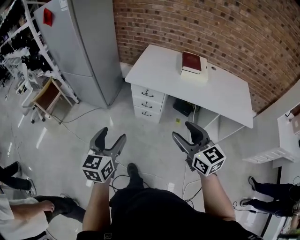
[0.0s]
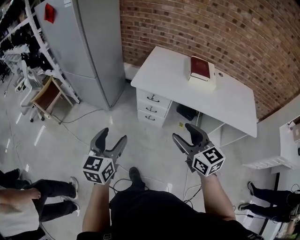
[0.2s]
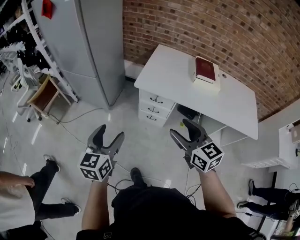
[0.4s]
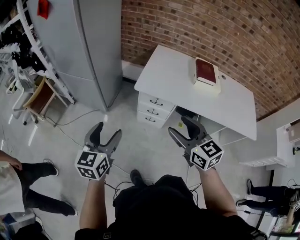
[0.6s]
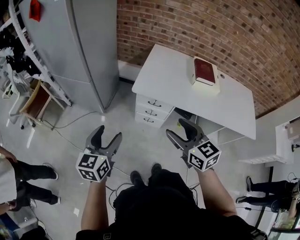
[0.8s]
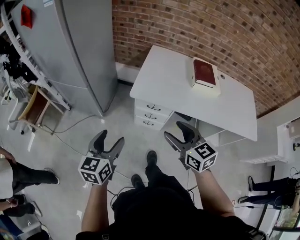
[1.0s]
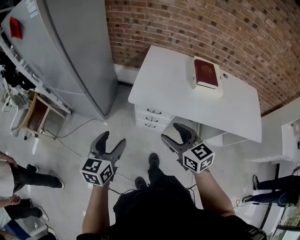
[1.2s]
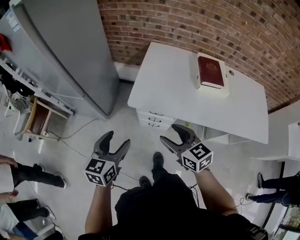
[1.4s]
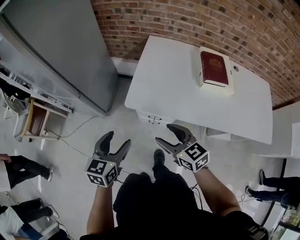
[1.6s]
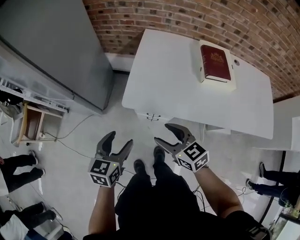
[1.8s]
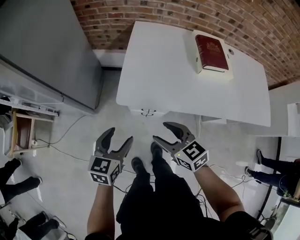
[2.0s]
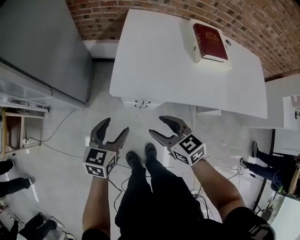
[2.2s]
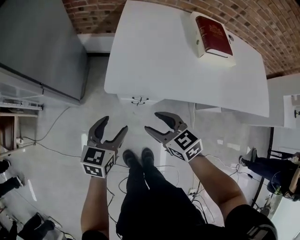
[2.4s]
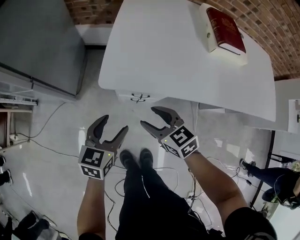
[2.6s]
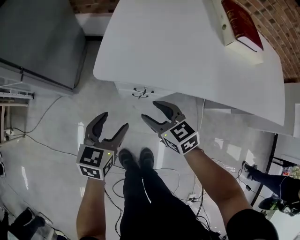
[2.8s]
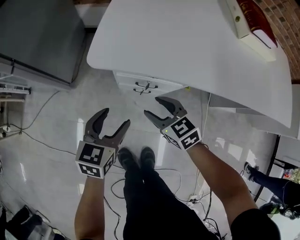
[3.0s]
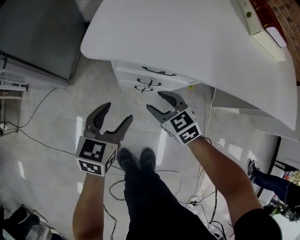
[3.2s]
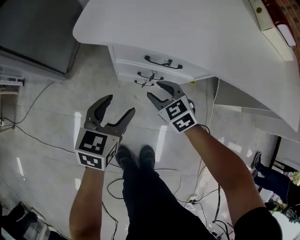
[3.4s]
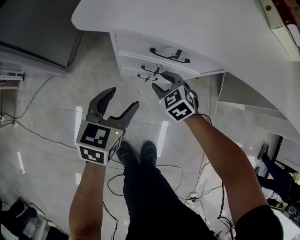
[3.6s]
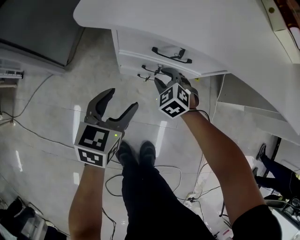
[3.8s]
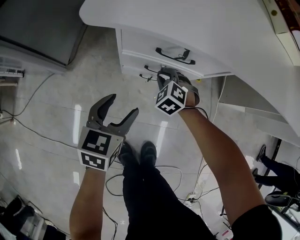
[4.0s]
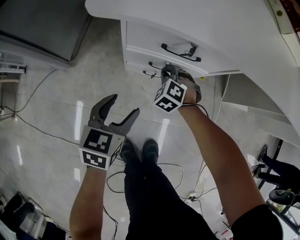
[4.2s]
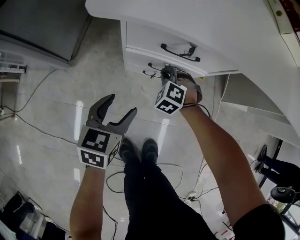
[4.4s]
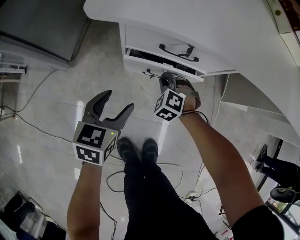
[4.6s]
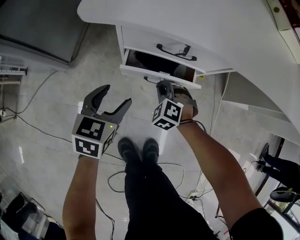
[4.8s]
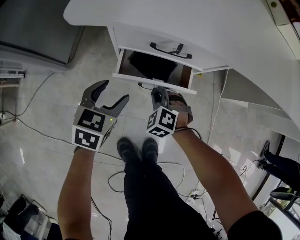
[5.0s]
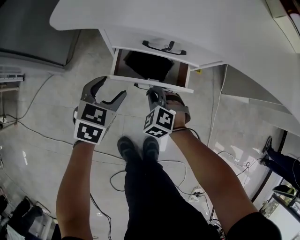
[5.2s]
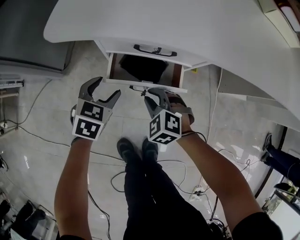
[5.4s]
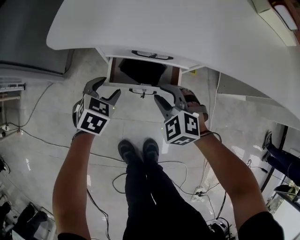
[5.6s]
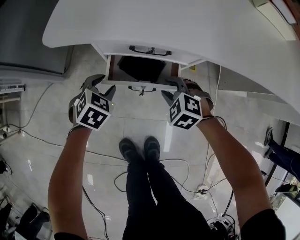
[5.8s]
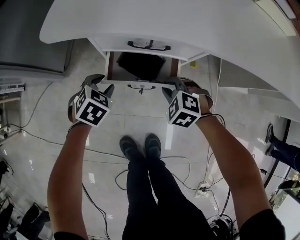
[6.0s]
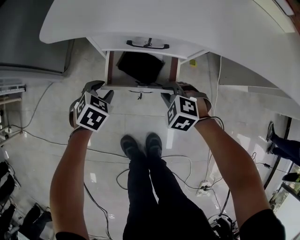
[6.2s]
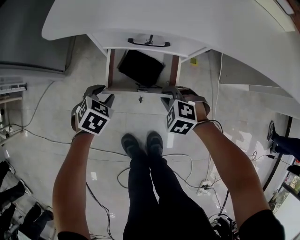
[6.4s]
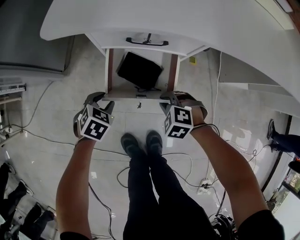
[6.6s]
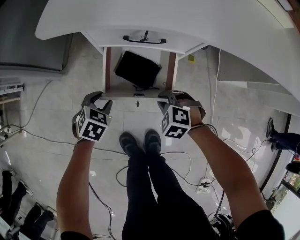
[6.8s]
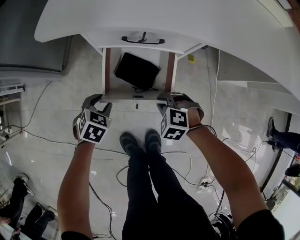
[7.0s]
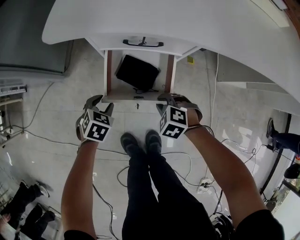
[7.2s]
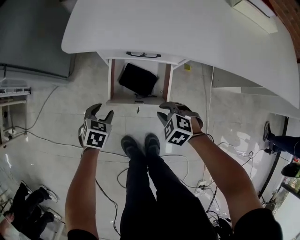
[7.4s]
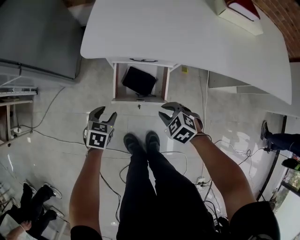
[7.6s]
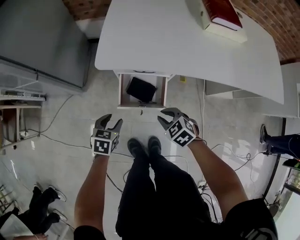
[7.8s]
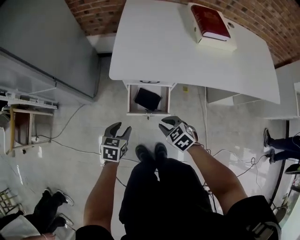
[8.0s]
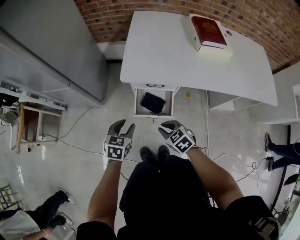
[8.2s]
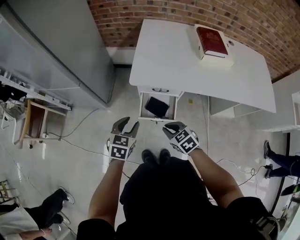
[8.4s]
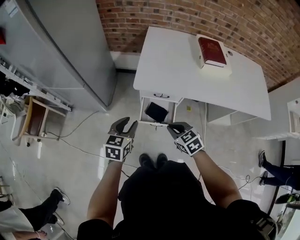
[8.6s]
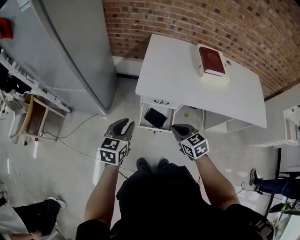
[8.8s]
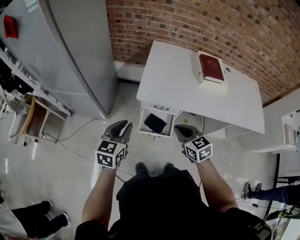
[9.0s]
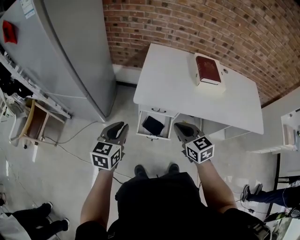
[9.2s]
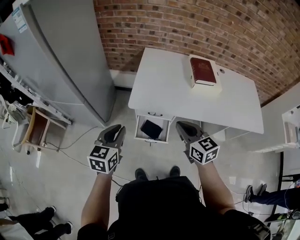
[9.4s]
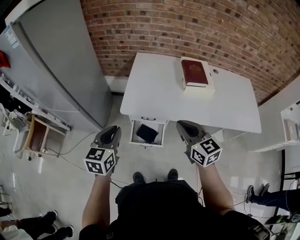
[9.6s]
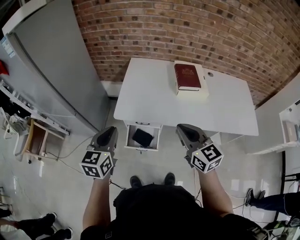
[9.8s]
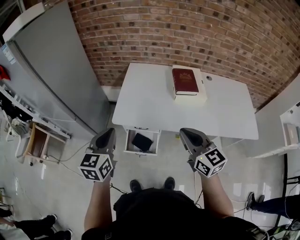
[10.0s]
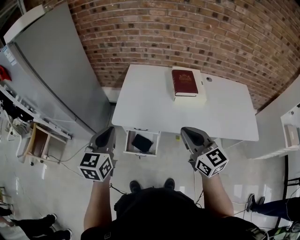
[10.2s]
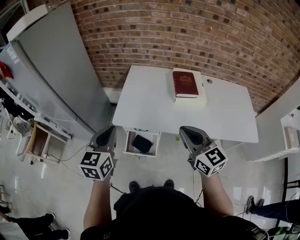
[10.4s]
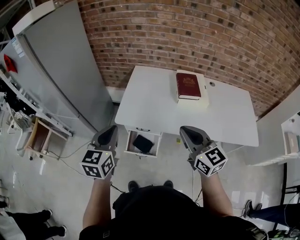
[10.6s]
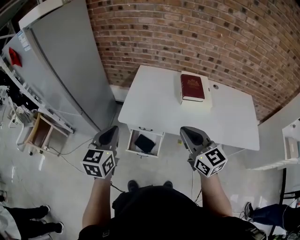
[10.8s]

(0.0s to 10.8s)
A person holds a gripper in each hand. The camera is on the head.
0.0s - 1.6s: Both grippers move forward, some 35 cm.
1.6s - 3.0s: Both grippers travel together downward, about 35 cm.
3.0s - 4.6s: The left gripper shifts approximately 10 cm downward; the right gripper travels downward by roughly 20 cm, rotates about 50 degrees, and closes up.
4.6s - 6.2s: The left gripper travels downward by some 10 cm, turns by approximately 40 degrees, and closes. The right gripper is displaced backward, to the right and upward by approximately 10 cm, and opens, then closes once more.
6.2s - 7.8s: The right gripper moves upward, roughly 20 cm, and rotates approximately 30 degrees. The left gripper goes some 20 cm upward and backward, and rotates roughly 30 degrees.
7.8s - 9.2s: Both grippers travel together upward, about 35 cm. The left gripper rotates about 30 degrees, and closes its fingers. The right gripper points its fingers roughly 30 degrees further upward.
9.2s - 10.8s: The left gripper moves upward and to the right, about 20 cm. The right gripper goes approximately 20 cm to the right and upward, and turns by about 20 degrees.

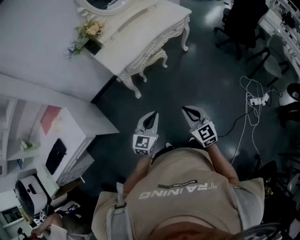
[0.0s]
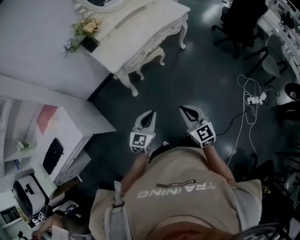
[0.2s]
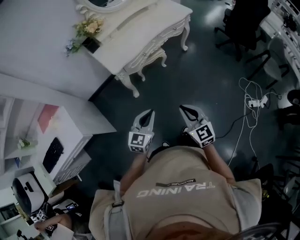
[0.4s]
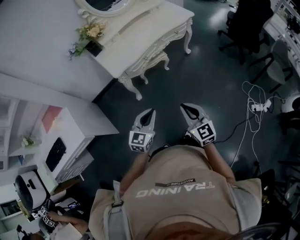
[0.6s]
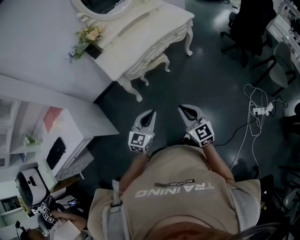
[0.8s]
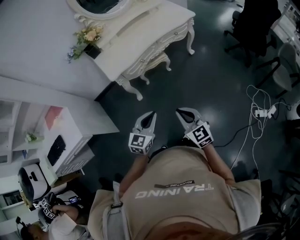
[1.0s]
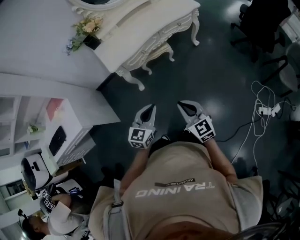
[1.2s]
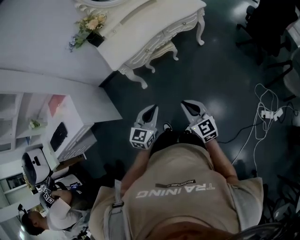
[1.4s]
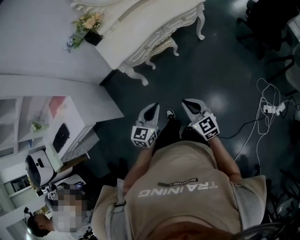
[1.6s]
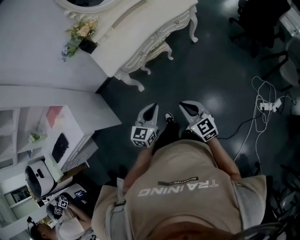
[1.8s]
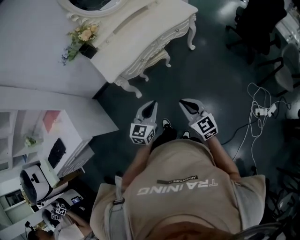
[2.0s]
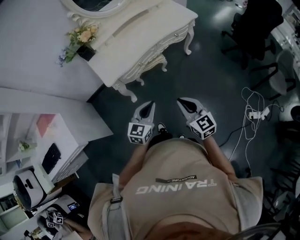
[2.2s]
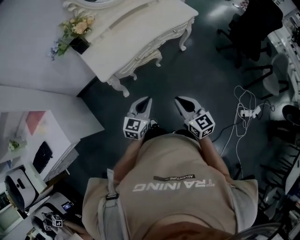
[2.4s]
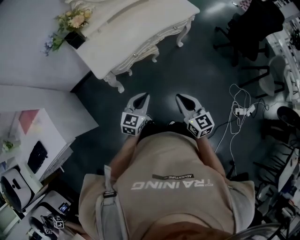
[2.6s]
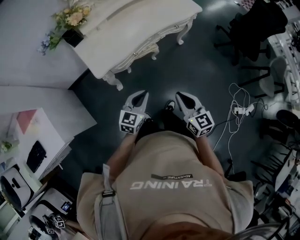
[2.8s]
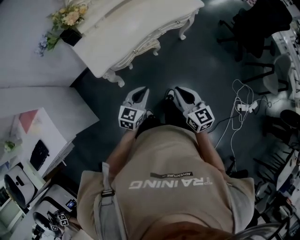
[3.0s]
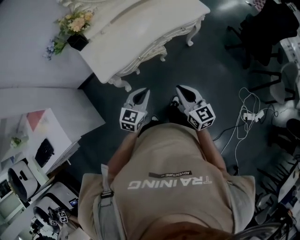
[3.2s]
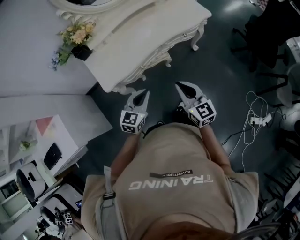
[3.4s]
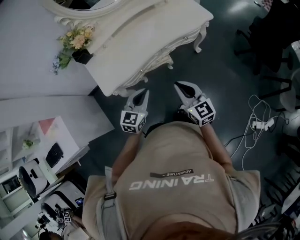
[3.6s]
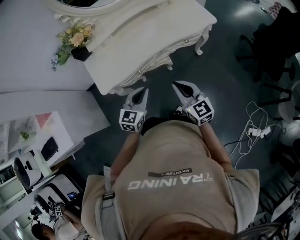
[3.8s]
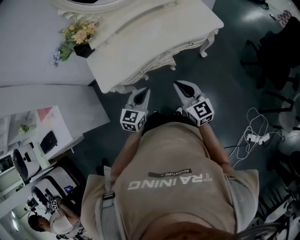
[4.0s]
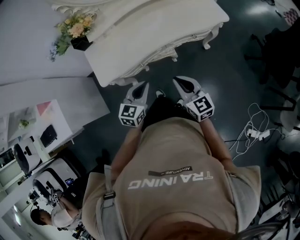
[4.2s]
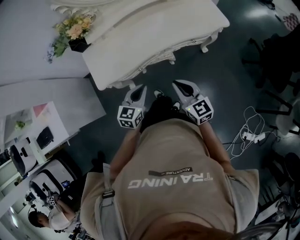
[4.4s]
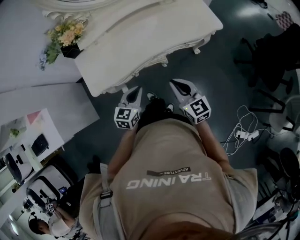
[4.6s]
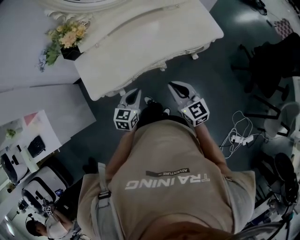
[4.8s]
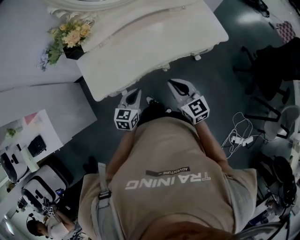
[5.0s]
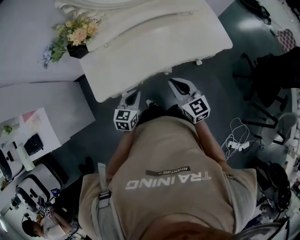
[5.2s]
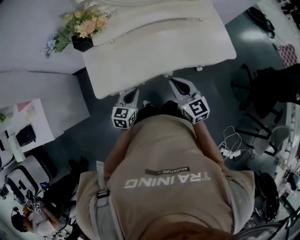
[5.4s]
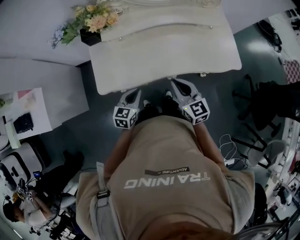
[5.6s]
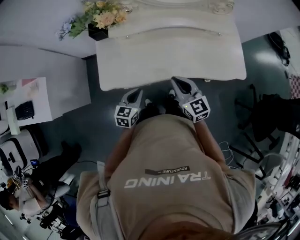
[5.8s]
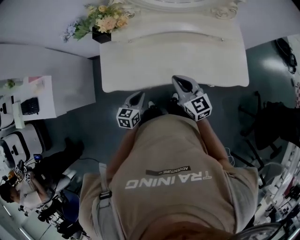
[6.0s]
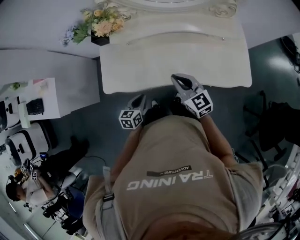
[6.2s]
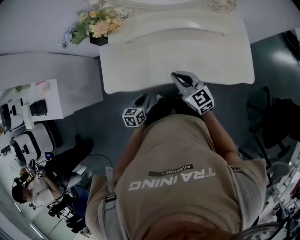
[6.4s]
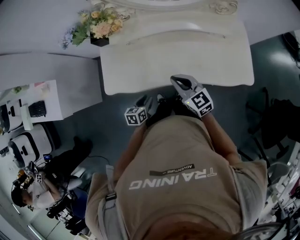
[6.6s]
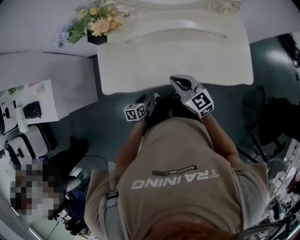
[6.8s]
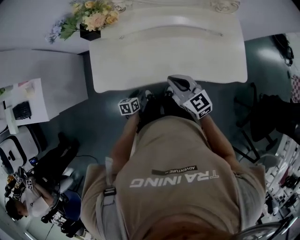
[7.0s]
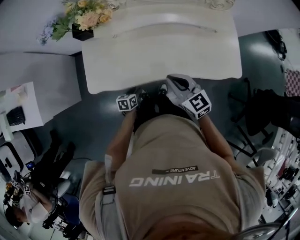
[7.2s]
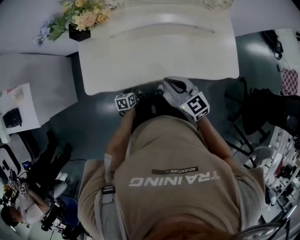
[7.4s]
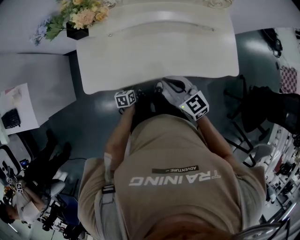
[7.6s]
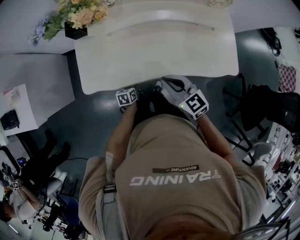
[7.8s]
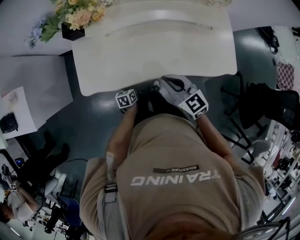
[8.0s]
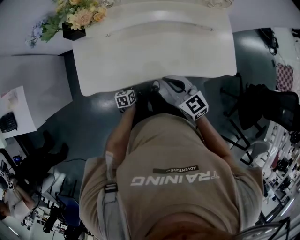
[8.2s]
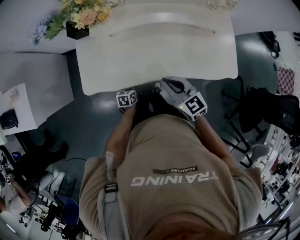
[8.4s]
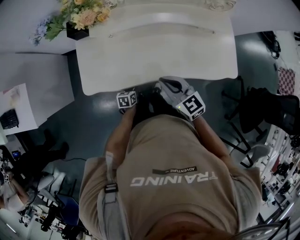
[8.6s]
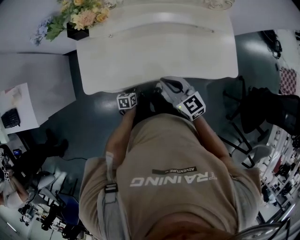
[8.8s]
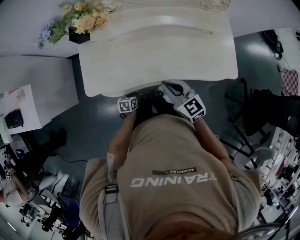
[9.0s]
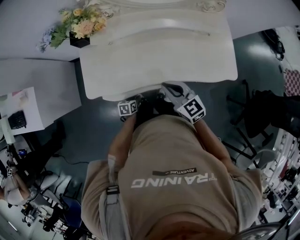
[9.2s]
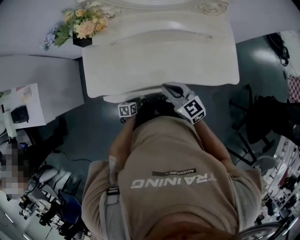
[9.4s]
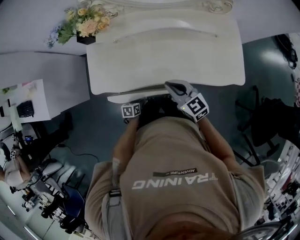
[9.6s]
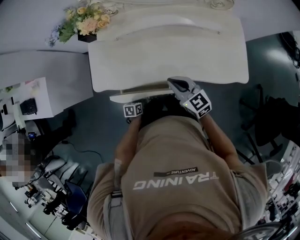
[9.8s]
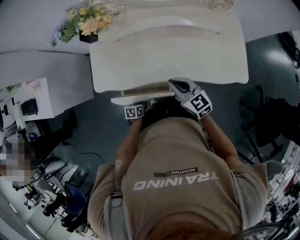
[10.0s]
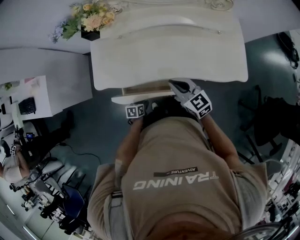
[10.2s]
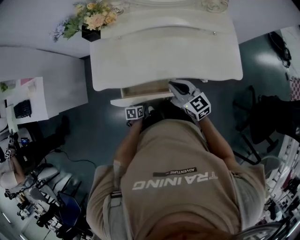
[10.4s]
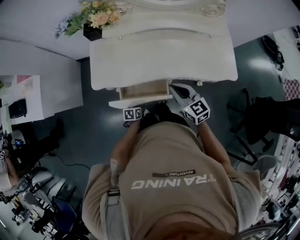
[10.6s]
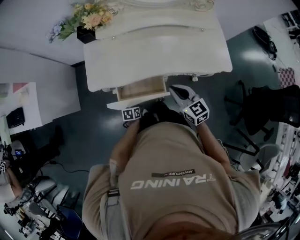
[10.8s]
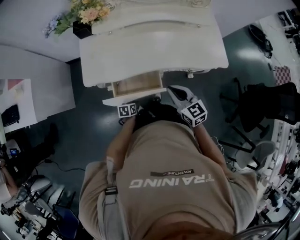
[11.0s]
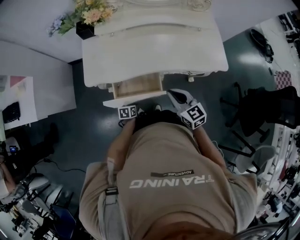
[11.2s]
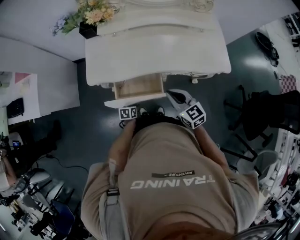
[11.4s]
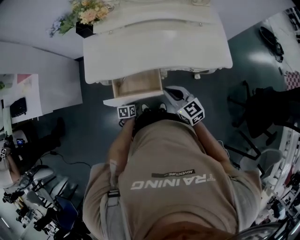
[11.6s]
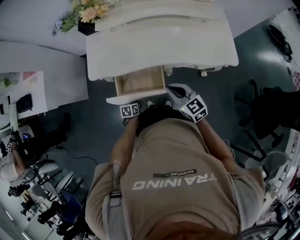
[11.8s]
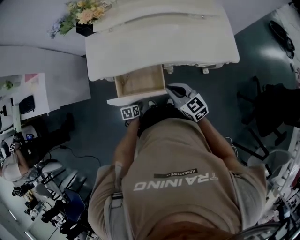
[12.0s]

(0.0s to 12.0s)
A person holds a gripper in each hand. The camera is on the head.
0.0s - 1.6s: The right gripper travels forward and to the right by some 20 cm. Meanwhile the left gripper moves to the right and forward, roughly 15 cm.
1.6s - 3.0s: The grippers both shift forward by some 20 cm.
3.0s - 4.4s: Both grippers move forward and to the right, about 20 cm. The left gripper turns by approximately 20 degrees.
4.4s - 6.0s: The left gripper travels forward, to the left and downward by approximately 15 cm, and rotates about 30 degrees. Meanwhile the right gripper is displaced forward by approximately 25 cm, and changes its angle by approximately 20 degrees.
6.0s - 7.6s: The left gripper moves downward, about 20 cm, swivels some 20 degrees, and opens.
7.6s - 9.0s: There are only small adjustments of the grippers.
9.0s - 10.4s: The right gripper shifts by about 5 cm, while the left gripper heads backward, covering approximately 10 cm.
10.4s - 12.0s: The right gripper is displaced backward and to the right by some 10 cm. Meanwhile the left gripper moves backward, about 10 cm.

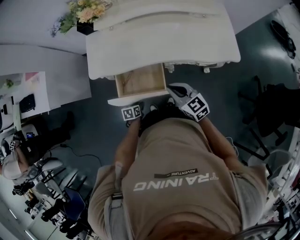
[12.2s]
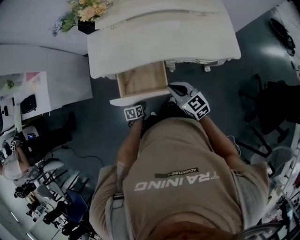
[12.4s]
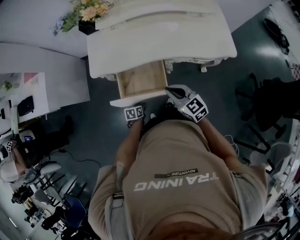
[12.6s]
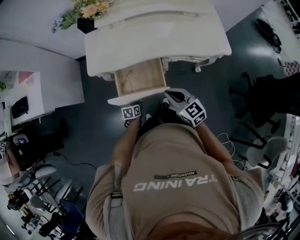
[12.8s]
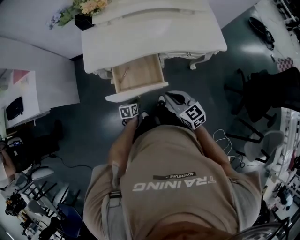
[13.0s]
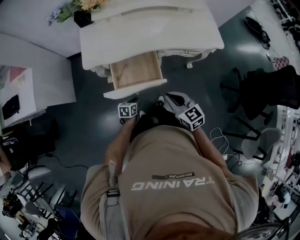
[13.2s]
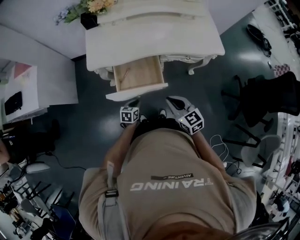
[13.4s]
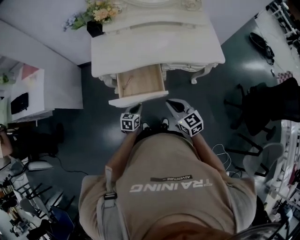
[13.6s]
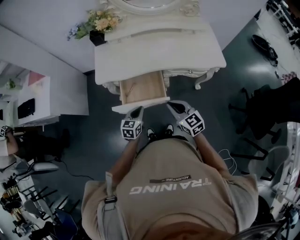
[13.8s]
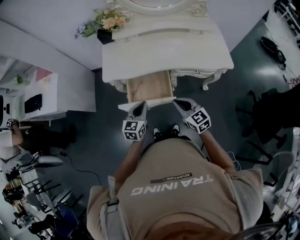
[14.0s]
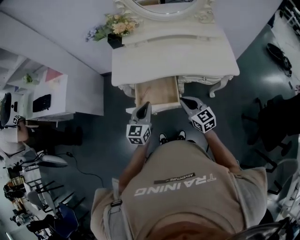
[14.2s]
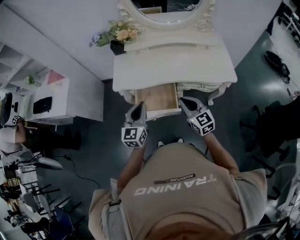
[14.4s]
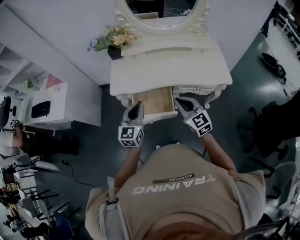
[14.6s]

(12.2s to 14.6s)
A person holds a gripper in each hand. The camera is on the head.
12.2s - 13.4s: The left gripper heads upward and backward, covering approximately 10 cm, and changes its angle by about 30 degrees; the right gripper heads backward, covering about 15 cm.
13.4s - 14.6s: The right gripper shifts roughly 15 cm upward and forward. Meanwhile the left gripper heads upward, covering roughly 35 cm, and points its fingers about 40 degrees further upward.
